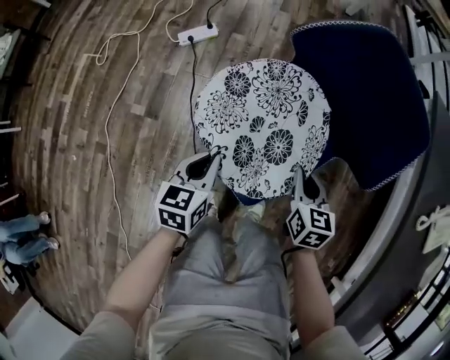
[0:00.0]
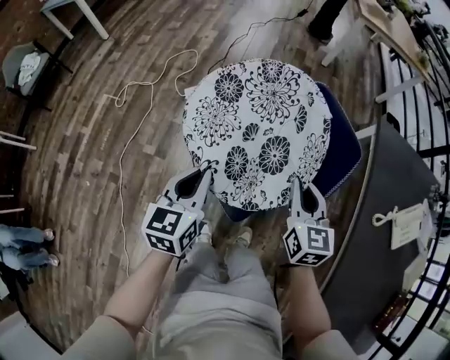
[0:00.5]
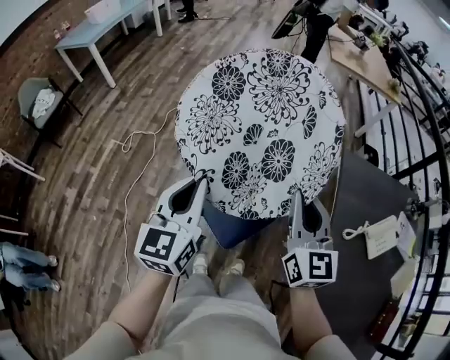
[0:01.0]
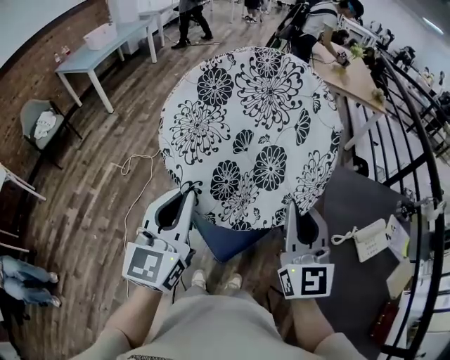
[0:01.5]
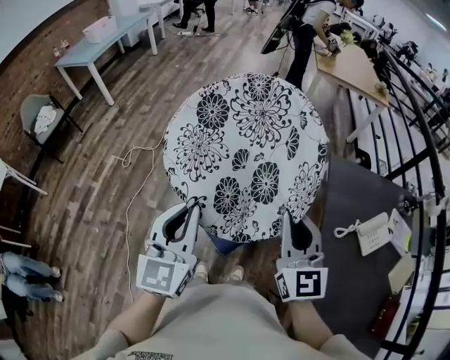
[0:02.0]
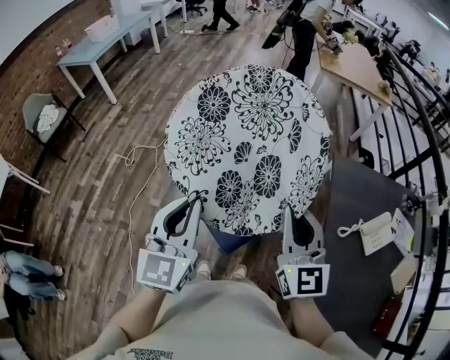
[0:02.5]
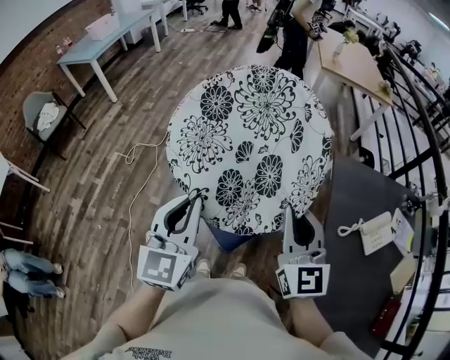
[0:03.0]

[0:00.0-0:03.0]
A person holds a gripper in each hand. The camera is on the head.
0.0 to 1.5 s: The left gripper goes upward and returns, approximately 30 cm each way. Meanwhile the right gripper moves roughly 30 cm upward and comes back.
1.5 to 3.0 s: The grippers move only a little.

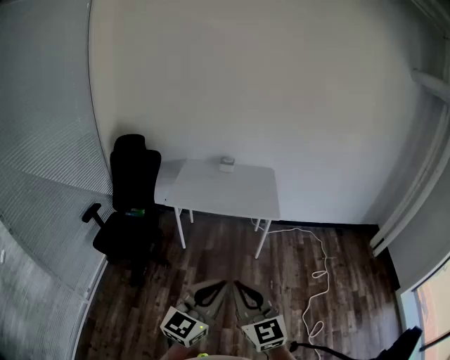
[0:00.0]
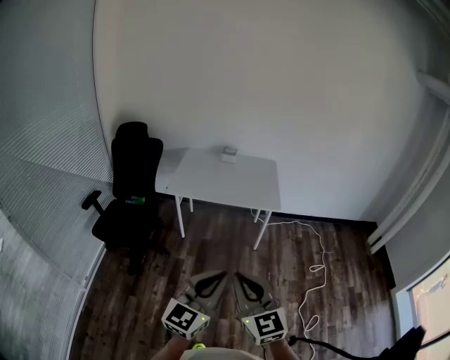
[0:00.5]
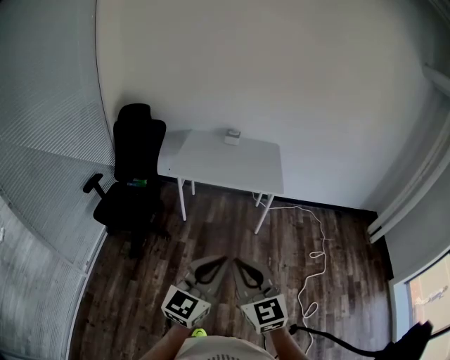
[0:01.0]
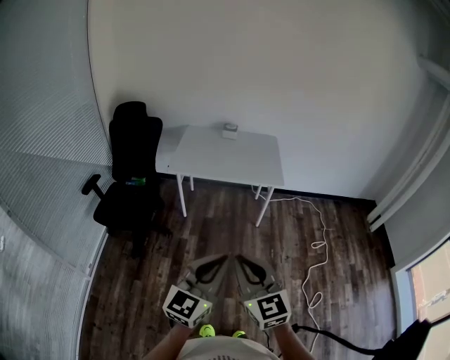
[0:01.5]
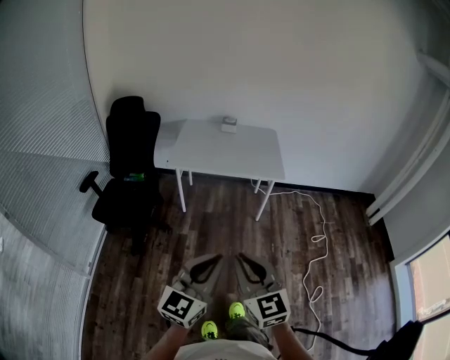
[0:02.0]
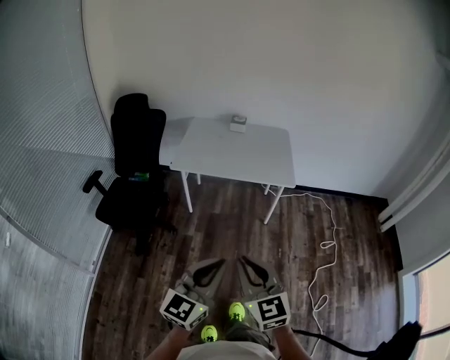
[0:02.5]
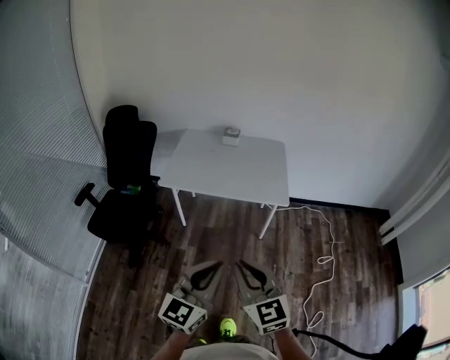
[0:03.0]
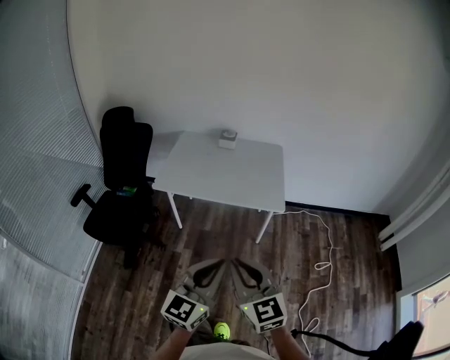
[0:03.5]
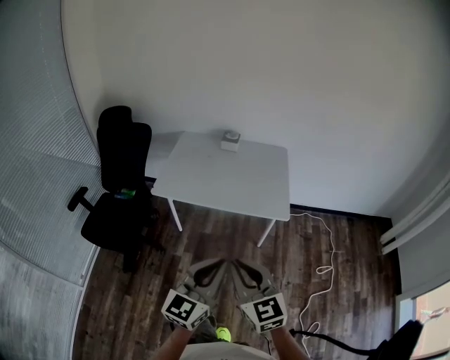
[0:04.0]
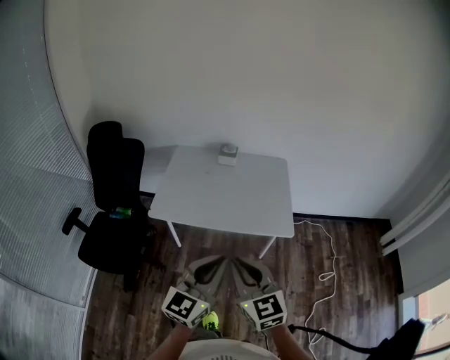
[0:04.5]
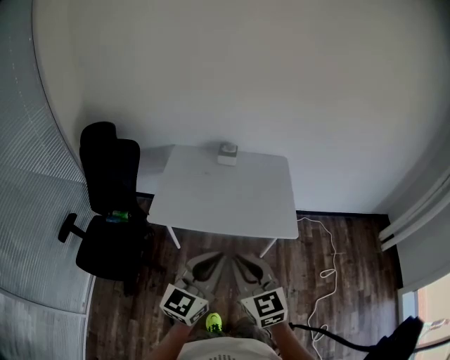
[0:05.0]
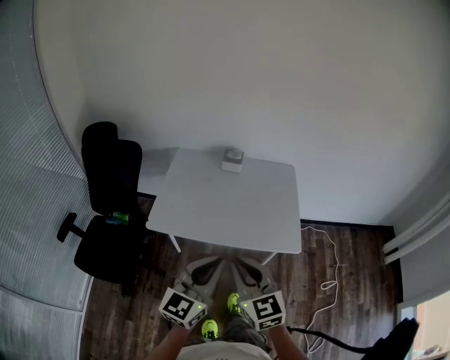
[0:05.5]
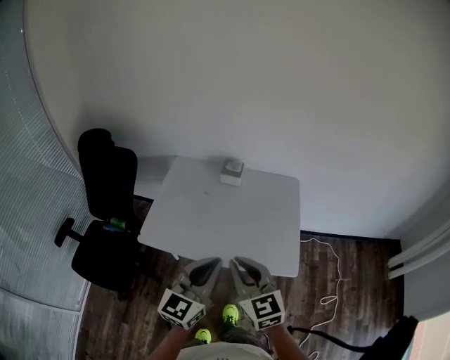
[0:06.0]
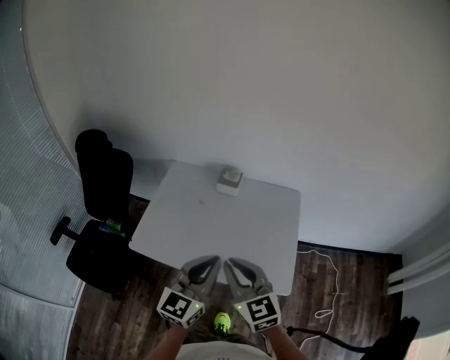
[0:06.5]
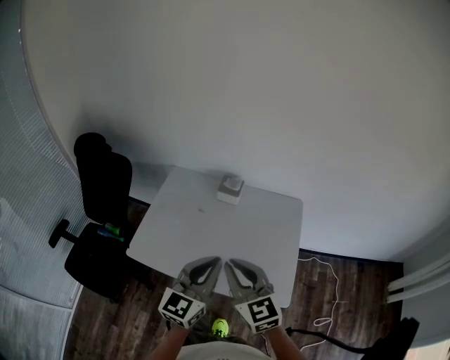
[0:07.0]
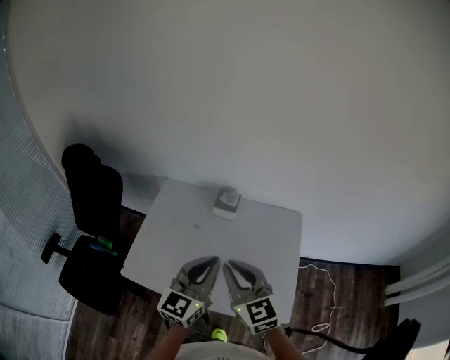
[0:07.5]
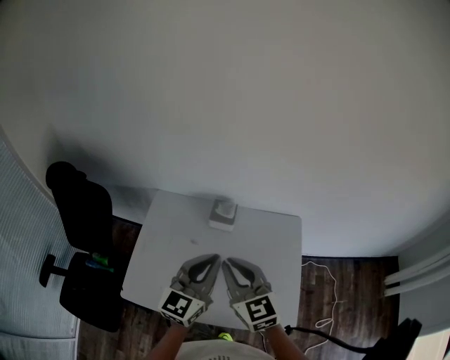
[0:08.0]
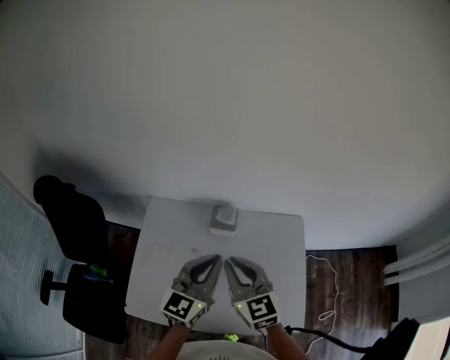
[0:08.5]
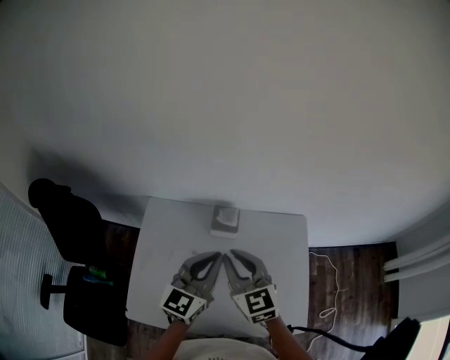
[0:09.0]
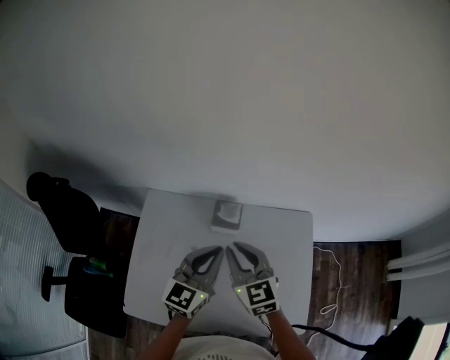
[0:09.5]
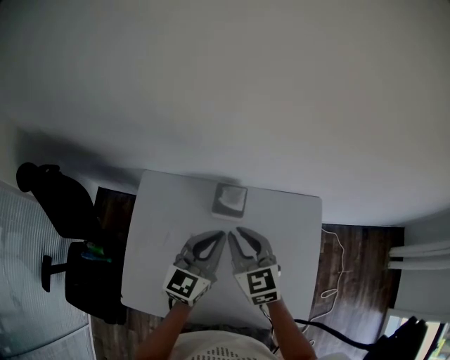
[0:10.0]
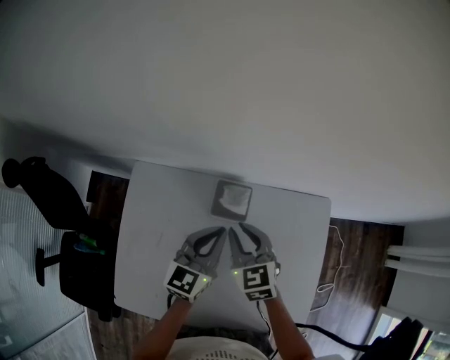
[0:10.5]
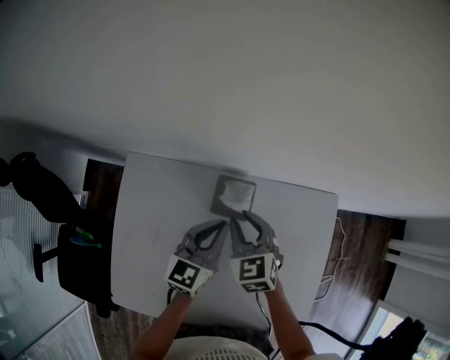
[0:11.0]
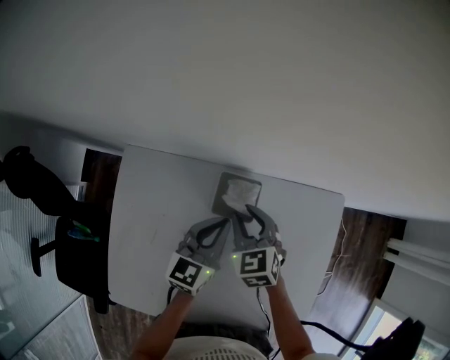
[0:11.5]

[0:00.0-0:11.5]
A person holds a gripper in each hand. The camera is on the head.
0.0 to 2.0 s: The right gripper moves to the left and downward, about 10 cm, while the left gripper shifts some 10 cm to the left.
2.0 to 4.0 s: The two grippers go about 35 cm forward.
4.0 to 6.0 s: Both grippers move forward, approximately 35 cm.
6.0 to 7.5 s: Both grippers move forward, approximately 25 cm.
7.5 to 9.5 s: Both grippers move forward, roughly 25 cm.
9.5 to 11.5 s: Both grippers travel together downward and forward, roughly 25 cm. The right gripper swivels about 20 degrees.

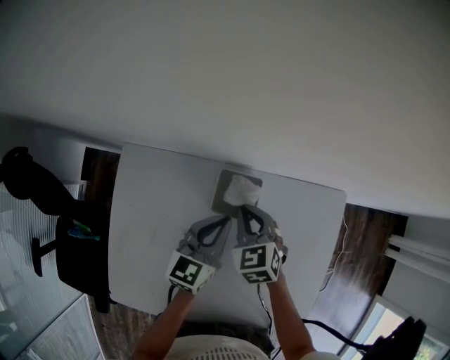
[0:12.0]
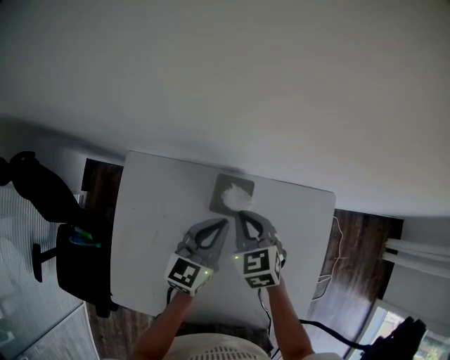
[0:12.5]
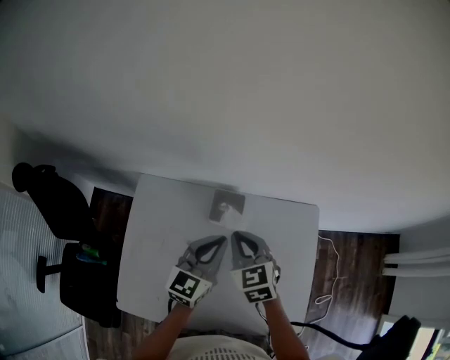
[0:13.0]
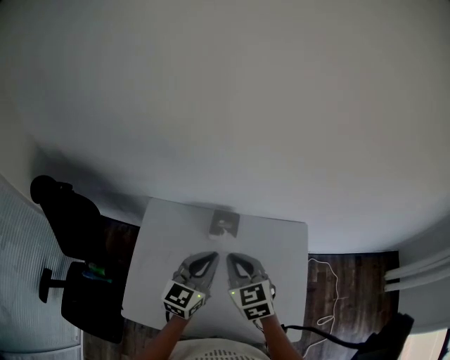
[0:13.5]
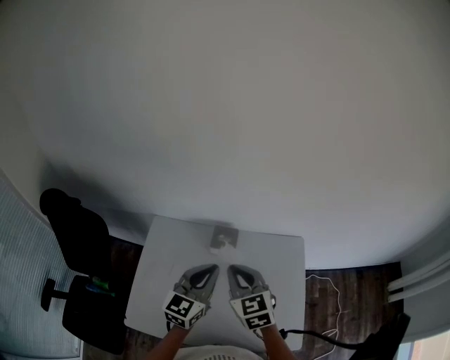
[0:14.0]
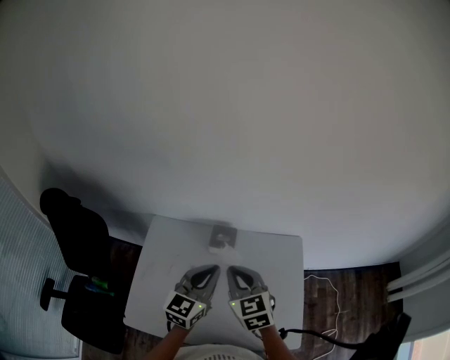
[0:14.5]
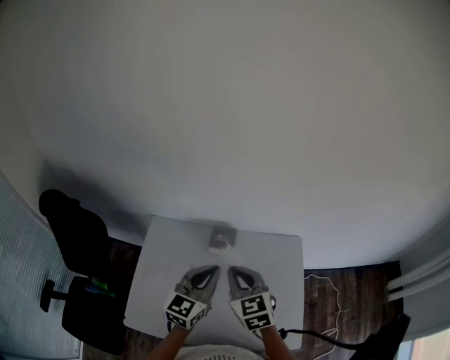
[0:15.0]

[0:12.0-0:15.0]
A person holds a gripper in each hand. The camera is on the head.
12.0 to 13.5 s: The two grippers go approximately 30 cm upward and backward.
13.5 to 15.0 s: The left gripper shifts by approximately 5 cm. Meanwhile the right gripper ends up about 5 cm from where it was.

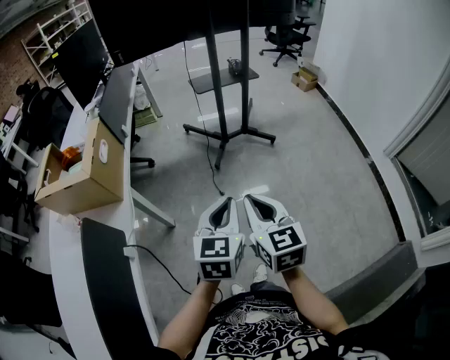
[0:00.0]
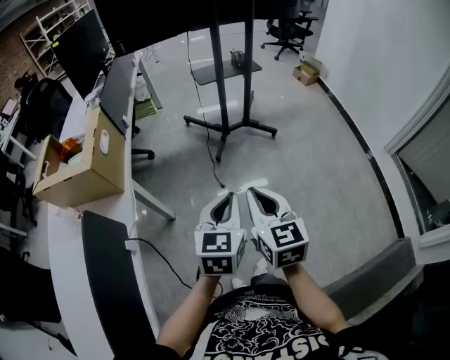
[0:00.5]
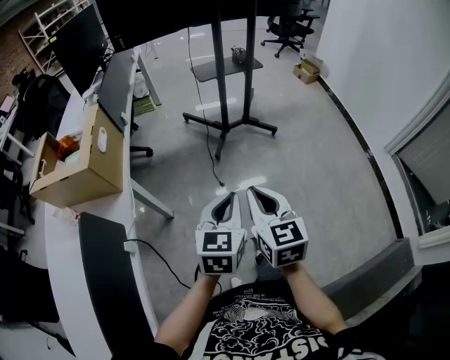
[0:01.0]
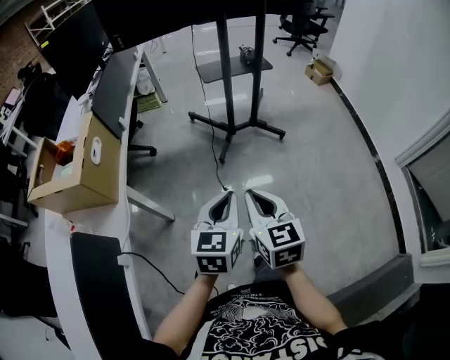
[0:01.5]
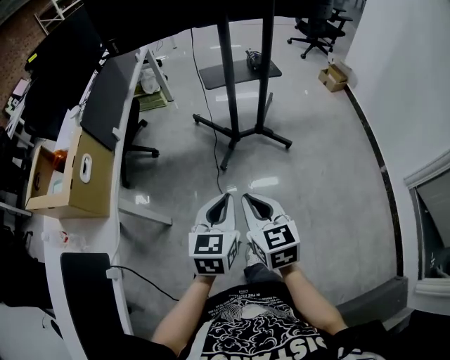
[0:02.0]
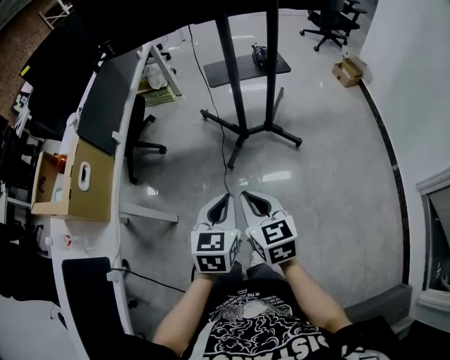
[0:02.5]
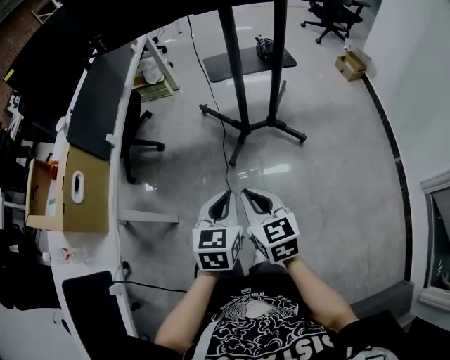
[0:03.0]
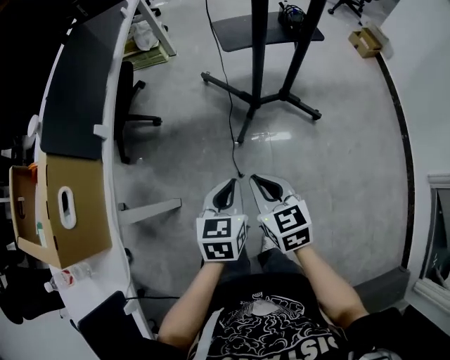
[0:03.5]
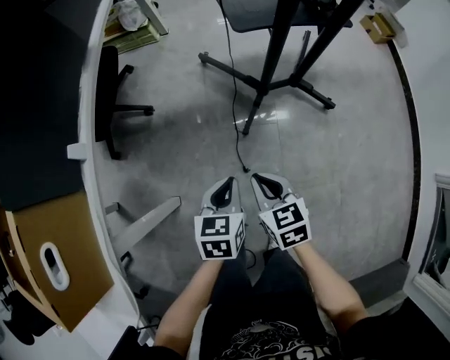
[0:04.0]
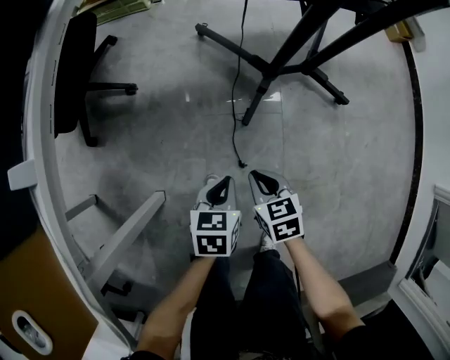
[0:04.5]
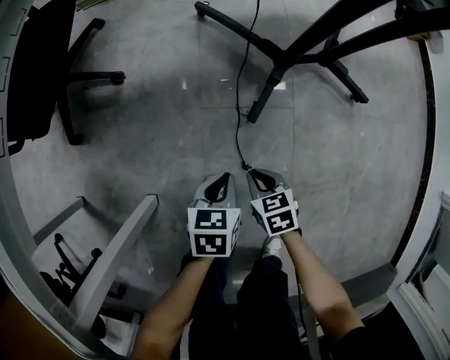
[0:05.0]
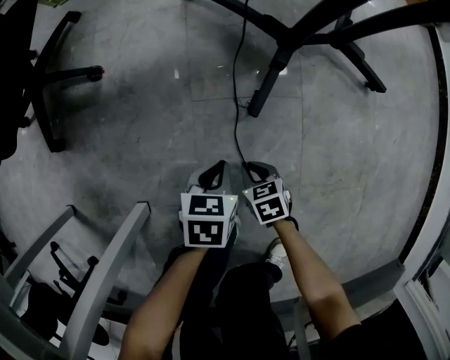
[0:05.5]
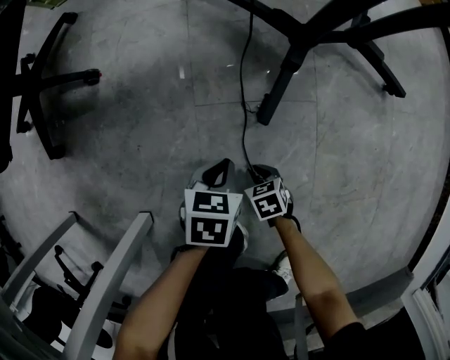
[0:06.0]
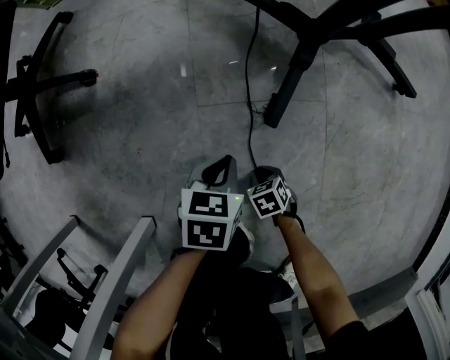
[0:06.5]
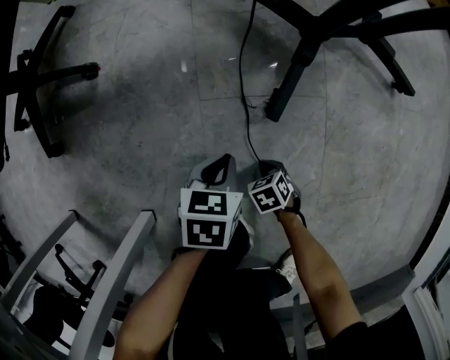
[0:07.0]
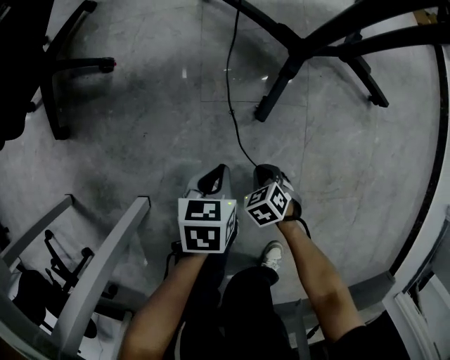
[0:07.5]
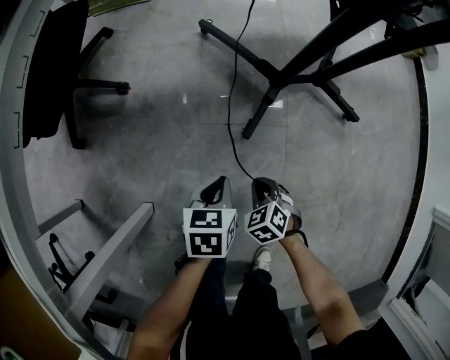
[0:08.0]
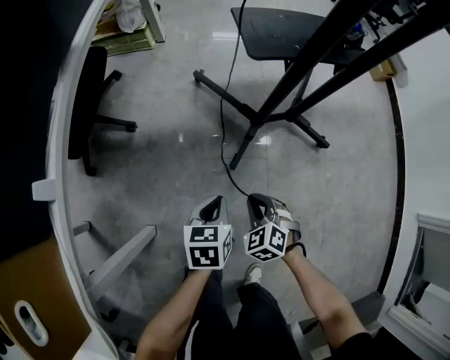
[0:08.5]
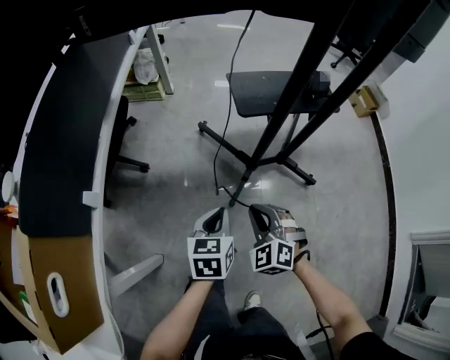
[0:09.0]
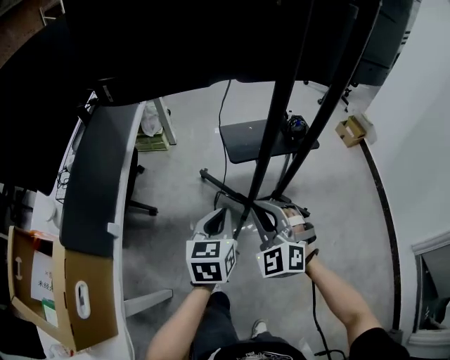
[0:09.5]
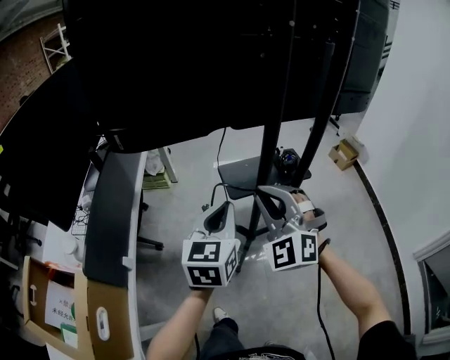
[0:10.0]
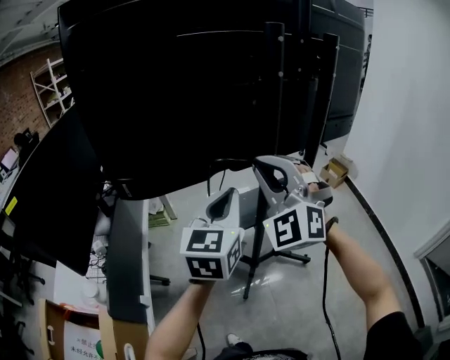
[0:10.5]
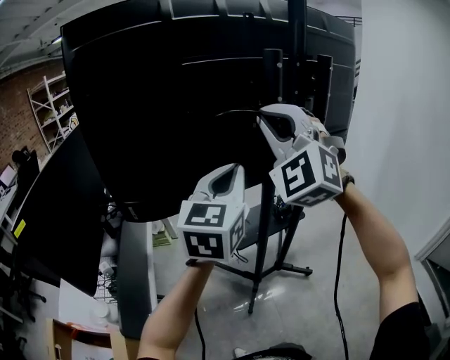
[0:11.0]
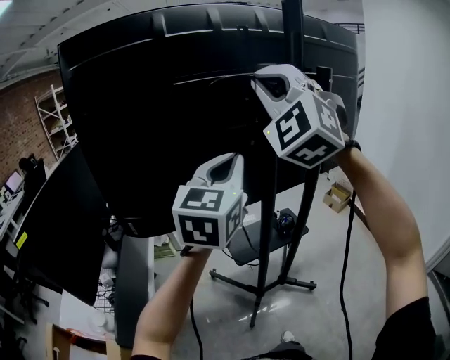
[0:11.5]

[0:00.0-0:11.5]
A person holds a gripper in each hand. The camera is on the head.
0.0 to 2.0 s: The left gripper is displaced forward by roughly 15 cm. The right gripper is displaced forward and downward by roughly 20 cm.
2.0 to 4.0 s: The grippers both shift downward and forward by approximately 35 cm. The right gripper rotates about 20 degrees; the left gripper rotates roughly 20 degrees.
4.0 to 6.0 s: The grippers both shift downward by approximately 50 cm. The right gripper rotates approximately 30 degrees, while the left gripper swivels some 20 degrees.
6.0 to 7.5 s: Both grippers move upward, some 10 cm. The right gripper swivels about 30 degrees.
7.5 to 9.5 s: The grippers both shift upward by some 60 cm. The left gripper tips its fingers upward by approximately 30 degrees. The right gripper tilts its fingers about 60 degrees upward.
9.5 to 11.5 s: Both grippers travel together upward, some 50 cm. The left gripper angles its fingers upward, by roughly 30 degrees. Meanwhile the right gripper tips its fingers upward by some 30 degrees.
